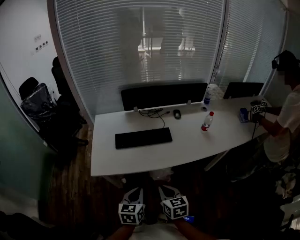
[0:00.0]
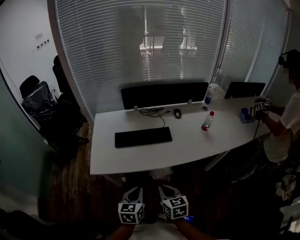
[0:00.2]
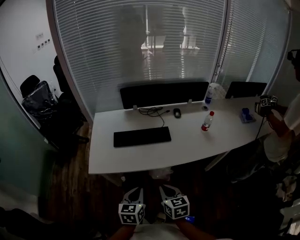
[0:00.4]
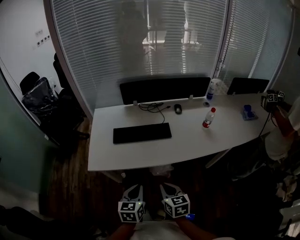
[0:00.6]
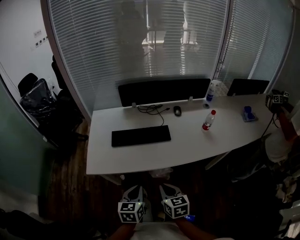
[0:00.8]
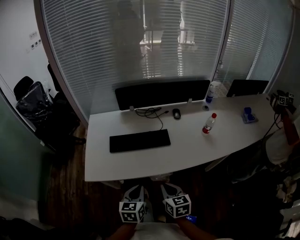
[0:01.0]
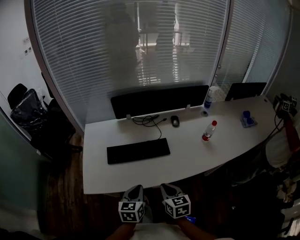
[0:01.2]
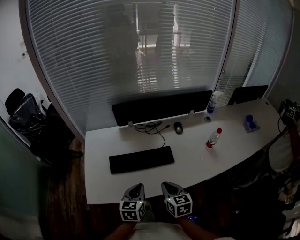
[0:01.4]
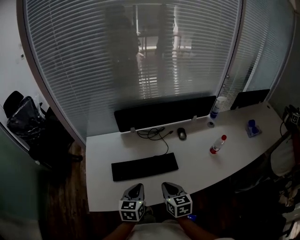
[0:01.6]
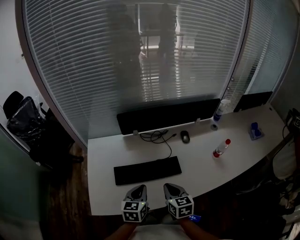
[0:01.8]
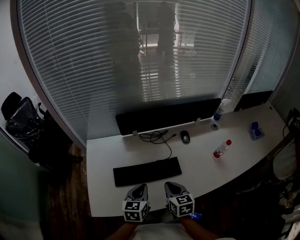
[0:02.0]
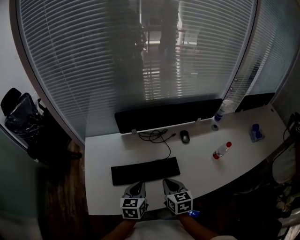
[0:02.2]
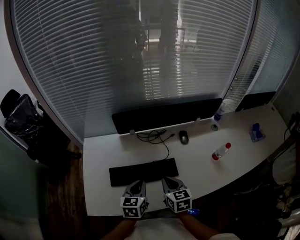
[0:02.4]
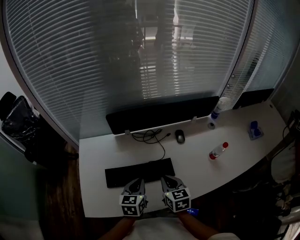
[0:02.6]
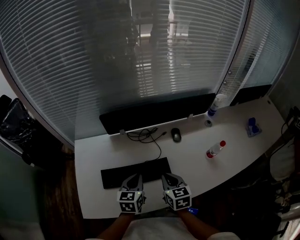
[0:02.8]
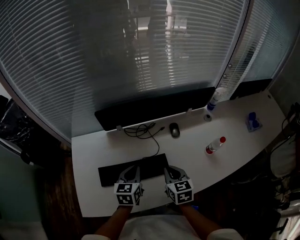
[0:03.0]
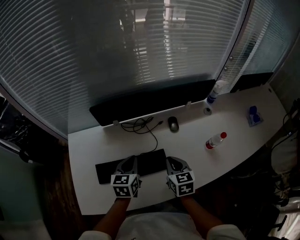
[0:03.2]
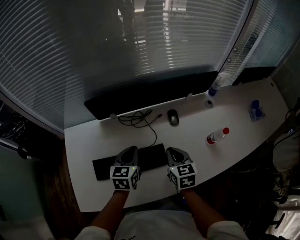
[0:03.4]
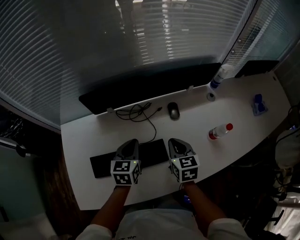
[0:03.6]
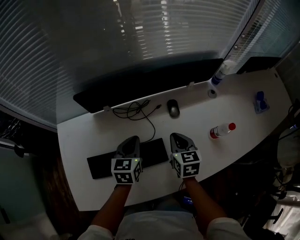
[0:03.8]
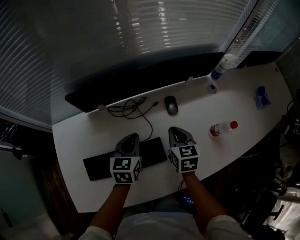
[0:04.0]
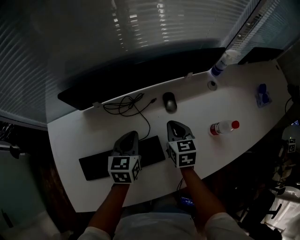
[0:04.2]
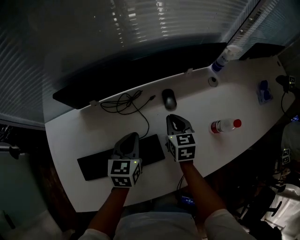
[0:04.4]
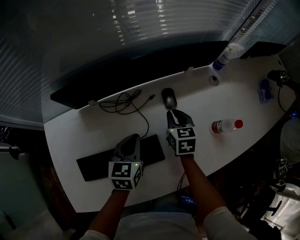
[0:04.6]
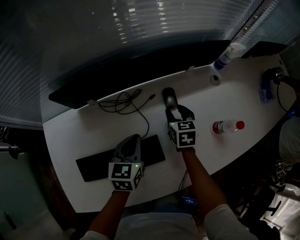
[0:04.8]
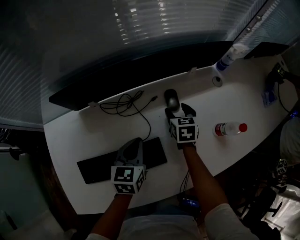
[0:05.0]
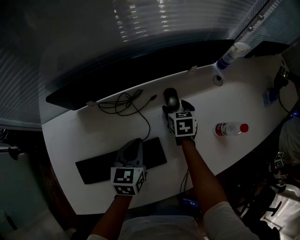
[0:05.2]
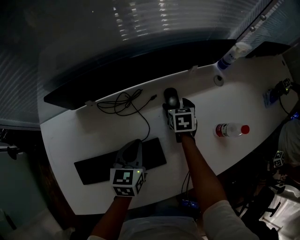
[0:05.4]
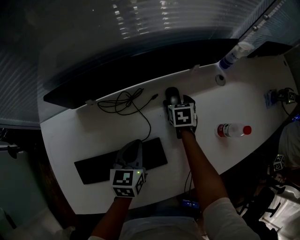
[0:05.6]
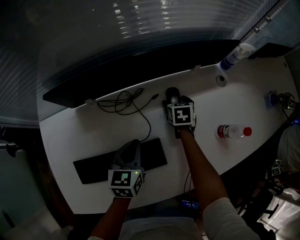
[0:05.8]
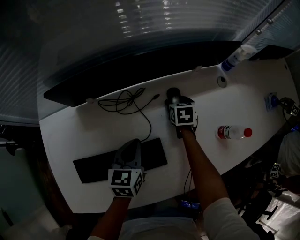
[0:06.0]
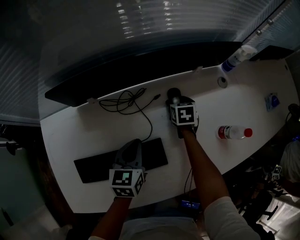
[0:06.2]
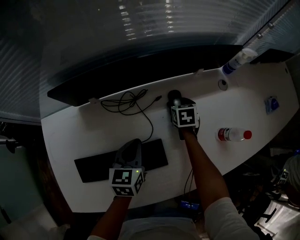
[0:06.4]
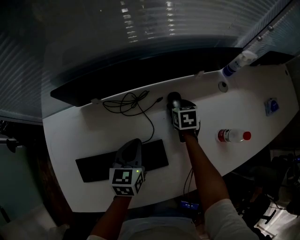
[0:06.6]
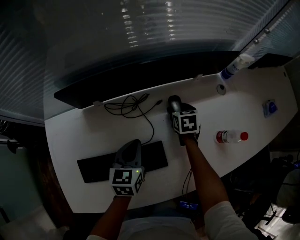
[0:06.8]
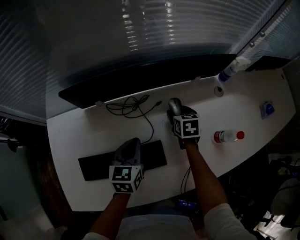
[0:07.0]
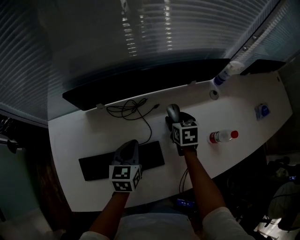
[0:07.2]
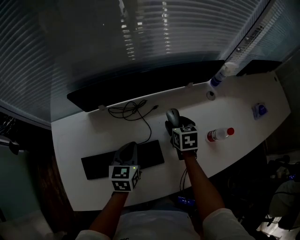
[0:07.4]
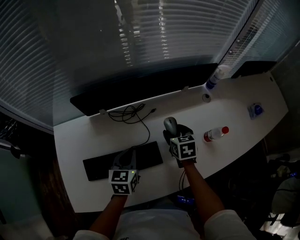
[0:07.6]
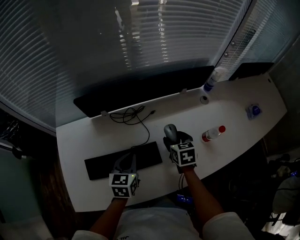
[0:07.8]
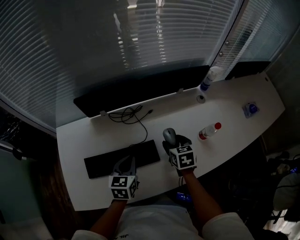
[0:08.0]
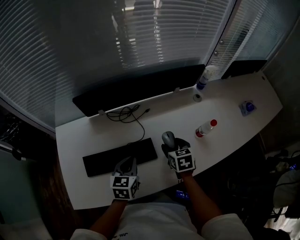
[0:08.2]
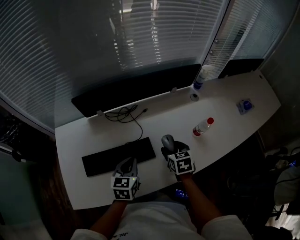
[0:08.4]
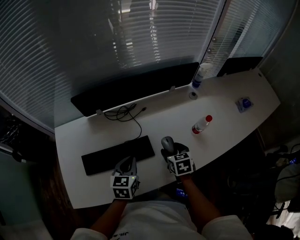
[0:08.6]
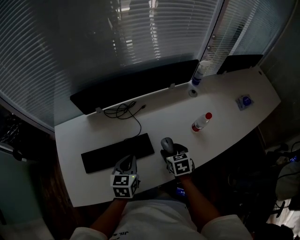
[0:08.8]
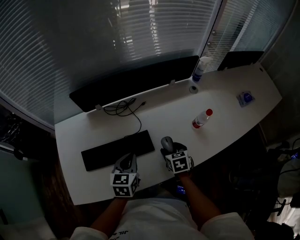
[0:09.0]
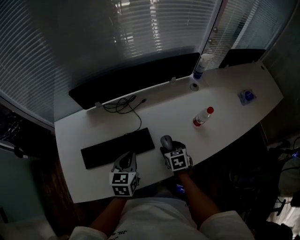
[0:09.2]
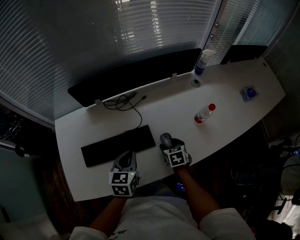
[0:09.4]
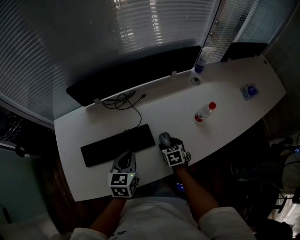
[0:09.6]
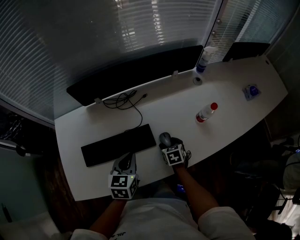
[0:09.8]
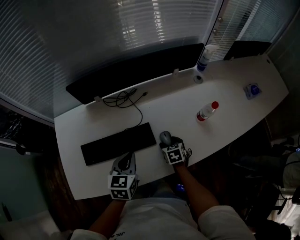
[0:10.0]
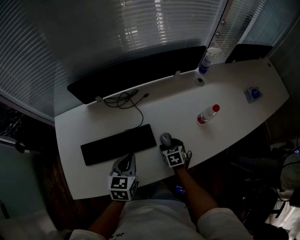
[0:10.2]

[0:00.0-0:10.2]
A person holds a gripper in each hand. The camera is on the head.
0:00.0 to 0:01.4: Both grippers move forward, roughly 20 cm.
0:01.4 to 0:03.0: Both grippers travel together forward, roughly 20 cm.
0:03.0 to 0:04.4: The two grippers go approximately 20 cm forward, downward and to the right.
0:04.4 to 0:05.8: The right gripper shifts some 15 cm downward and forward, and opens its fingers.
0:05.8 to 0:07.2: The right gripper moves upward and backward, approximately 10 cm.
0:07.2 to 0:08.8: The left gripper goes approximately 15 cm backward, while the right gripper shifts roughly 25 cm backward.
0:08.8 to 0:10.2: The right gripper shifts approximately 10 cm downward.

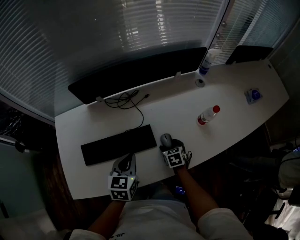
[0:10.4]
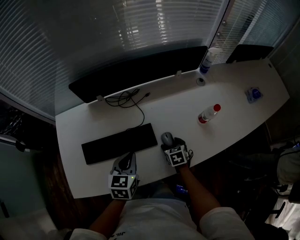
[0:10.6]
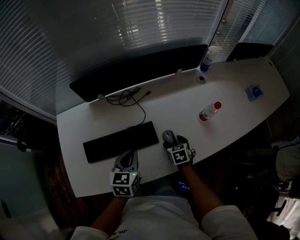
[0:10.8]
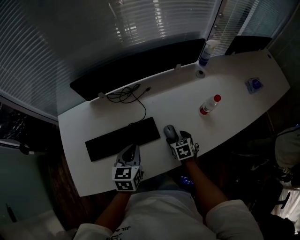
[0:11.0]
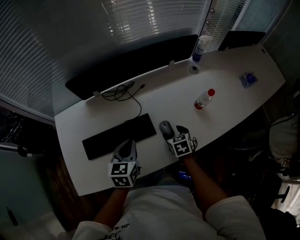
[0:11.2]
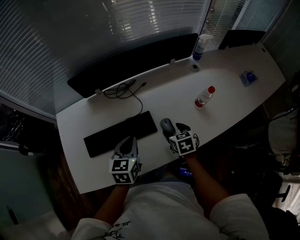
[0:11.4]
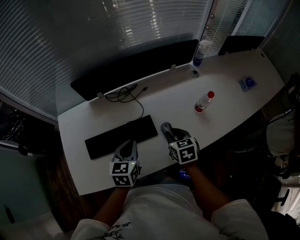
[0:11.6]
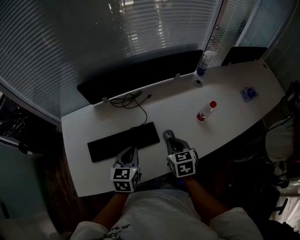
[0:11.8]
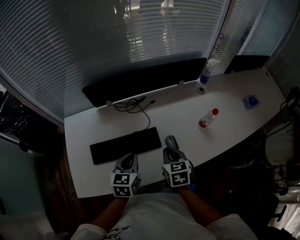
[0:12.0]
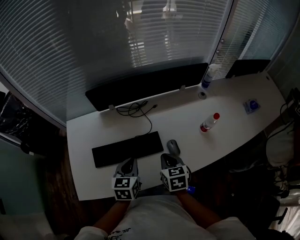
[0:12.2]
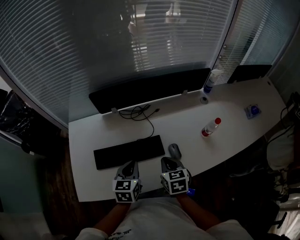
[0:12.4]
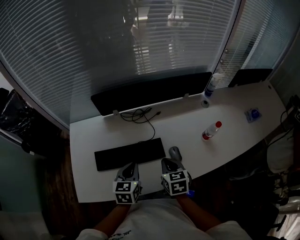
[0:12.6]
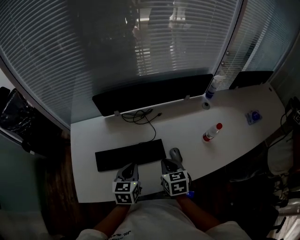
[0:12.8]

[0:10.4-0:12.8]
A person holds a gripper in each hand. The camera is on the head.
0:10.4 to 0:11.6: The right gripper goes about 15 cm upward, and closes up.
0:11.6 to 0:12.8: The right gripper travels to the left by about 10 cm. The left gripper goes some 5 cm to the left.

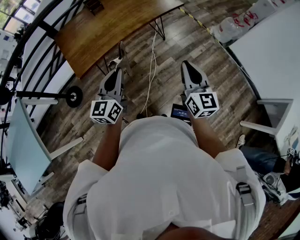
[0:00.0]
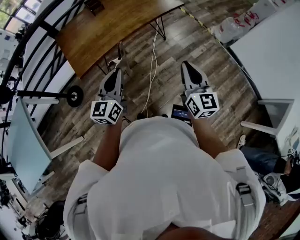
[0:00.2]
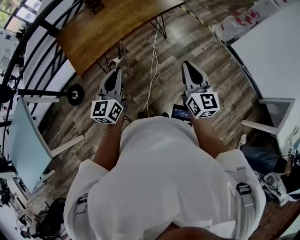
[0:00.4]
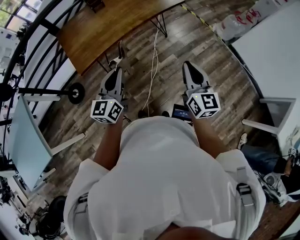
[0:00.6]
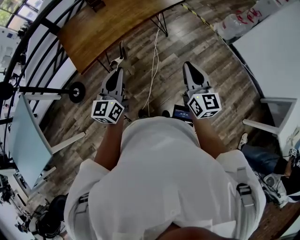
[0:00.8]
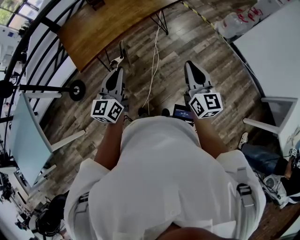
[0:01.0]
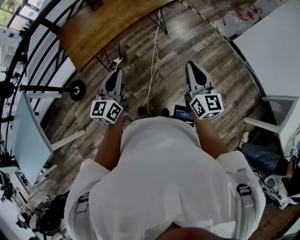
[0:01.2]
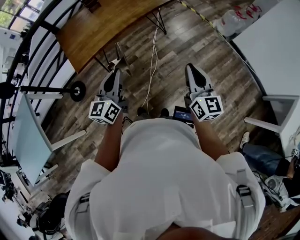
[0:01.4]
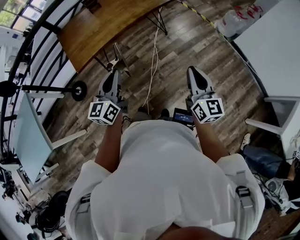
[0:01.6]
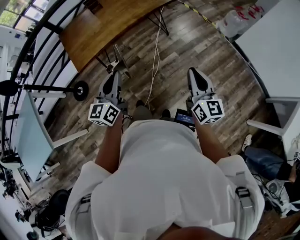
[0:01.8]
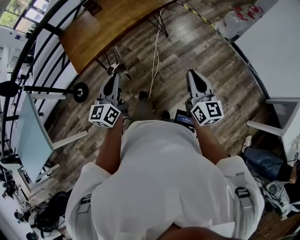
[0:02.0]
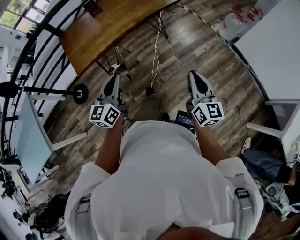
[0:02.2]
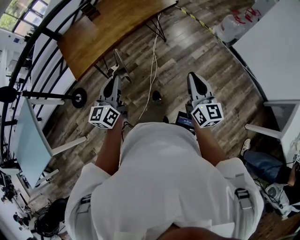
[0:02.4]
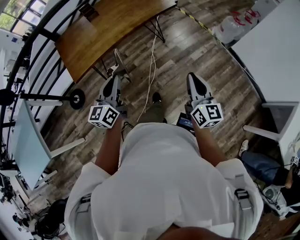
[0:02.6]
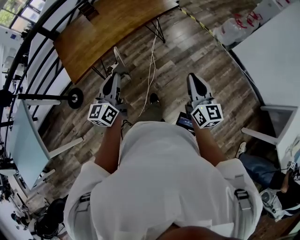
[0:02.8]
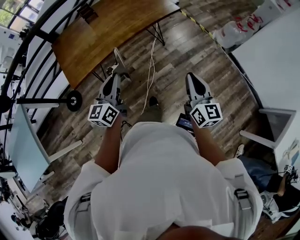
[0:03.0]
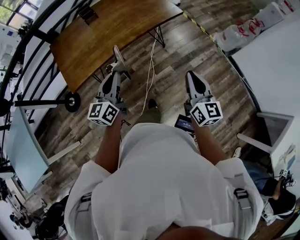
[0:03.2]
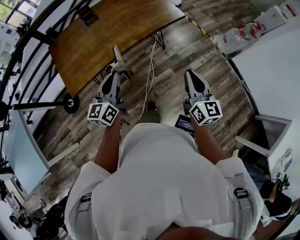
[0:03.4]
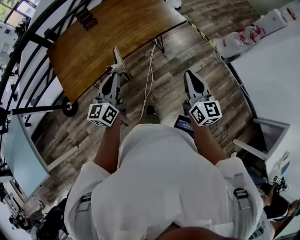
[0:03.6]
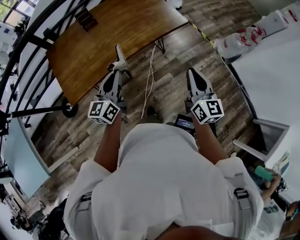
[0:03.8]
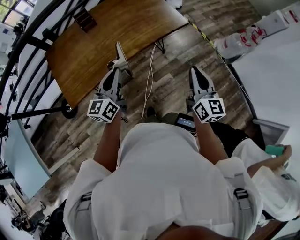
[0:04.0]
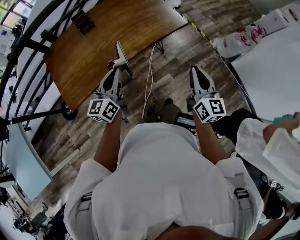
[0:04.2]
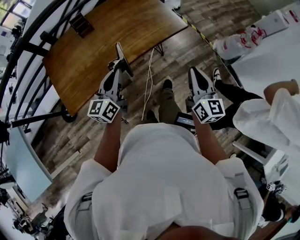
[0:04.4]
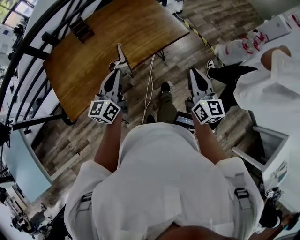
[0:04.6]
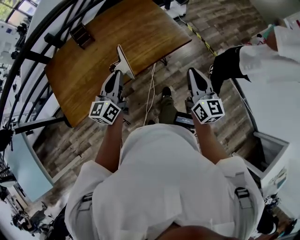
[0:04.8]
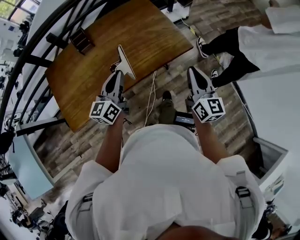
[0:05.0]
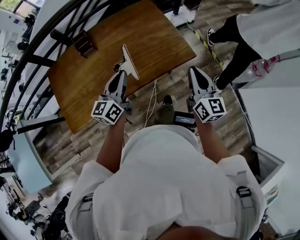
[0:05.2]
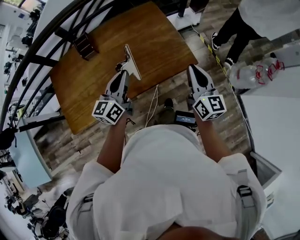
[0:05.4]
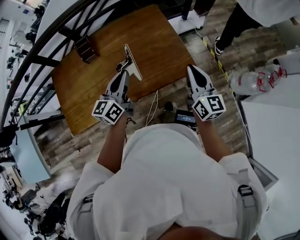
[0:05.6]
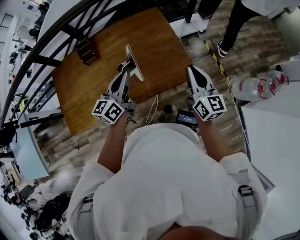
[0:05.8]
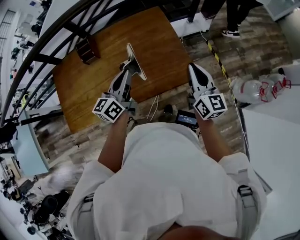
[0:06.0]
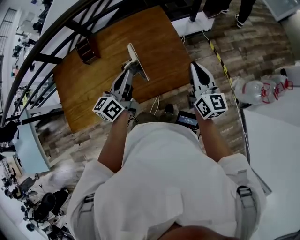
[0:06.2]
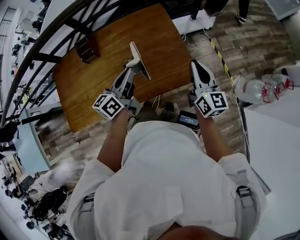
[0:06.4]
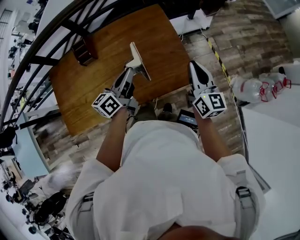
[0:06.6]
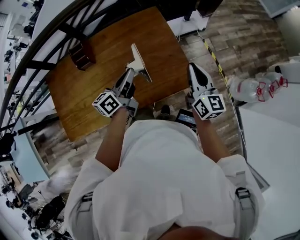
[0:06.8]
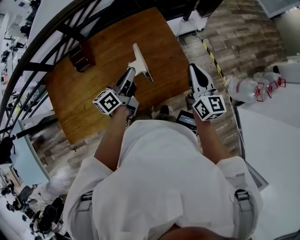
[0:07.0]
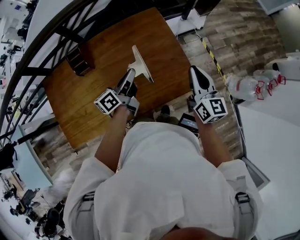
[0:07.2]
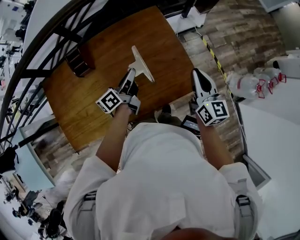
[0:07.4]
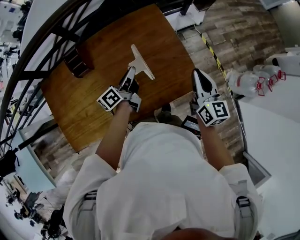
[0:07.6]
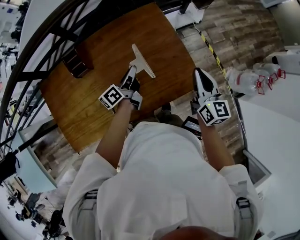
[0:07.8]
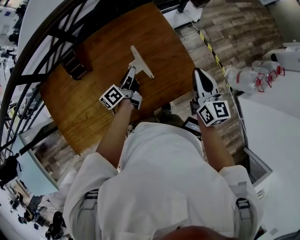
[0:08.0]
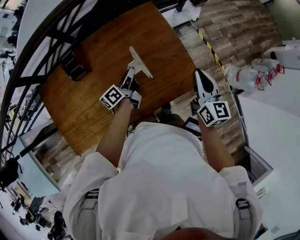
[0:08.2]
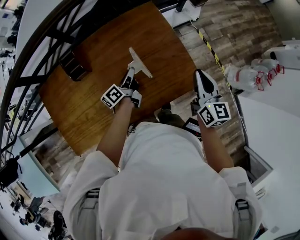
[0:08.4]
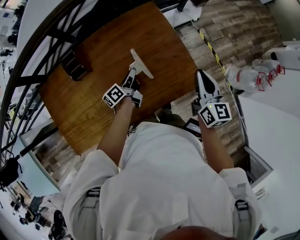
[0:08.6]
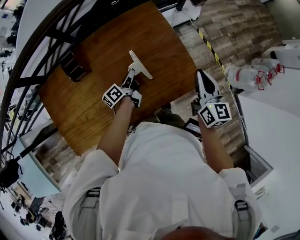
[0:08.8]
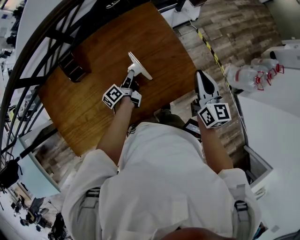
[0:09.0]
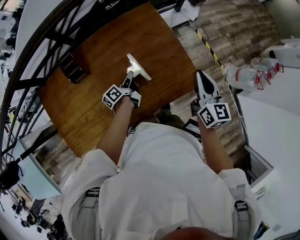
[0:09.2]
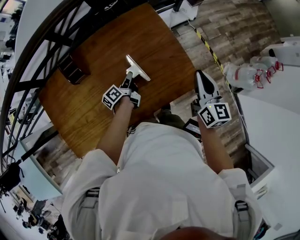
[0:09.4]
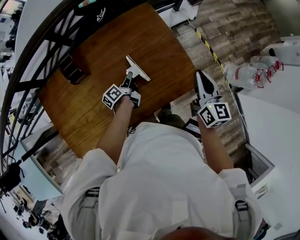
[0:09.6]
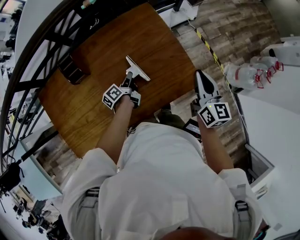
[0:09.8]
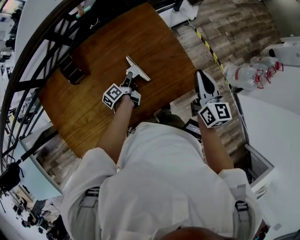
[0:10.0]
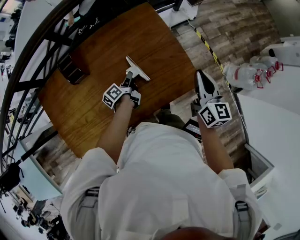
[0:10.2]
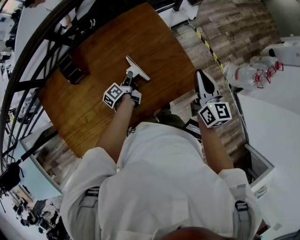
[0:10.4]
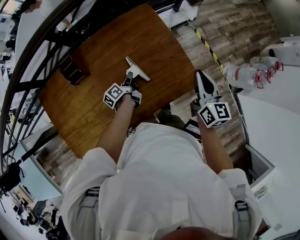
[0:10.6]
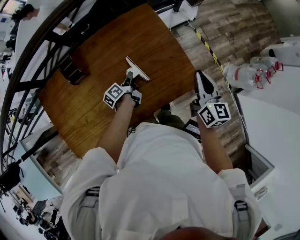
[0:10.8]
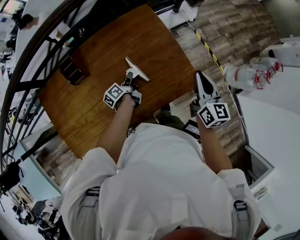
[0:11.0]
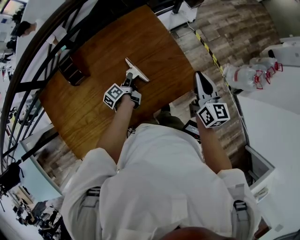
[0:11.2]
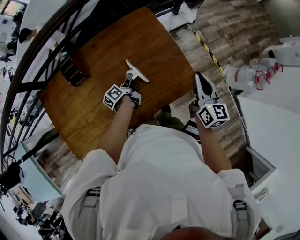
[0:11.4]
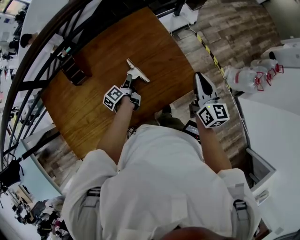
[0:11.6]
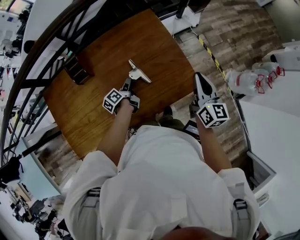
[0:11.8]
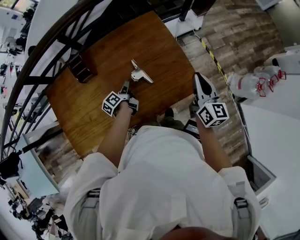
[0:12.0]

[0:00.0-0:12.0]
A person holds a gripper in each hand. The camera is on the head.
0:00.0 to 0:01.6: The two grippers go approximately 10 cm to the right and backward.
0:01.6 to 0:03.0: Both grippers travel together forward, about 10 cm.
0:03.0 to 0:04.4: The grippers both shift forward by some 25 cm.
0:04.4 to 0:06.0: Both grippers move forward, about 35 cm.
0:06.0 to 0:07.6: The left gripper travels forward and downward by approximately 15 cm, and swivels some 30 degrees. The right gripper heads forward, covering about 5 cm.
0:07.6 to 0:09.0: The left gripper goes roughly 15 cm downward.
0:09.0 to 0:10.4: The grippers stay close to where they were, moving slightly.
0:10.4 to 0:12.0: The left gripper changes place by roughly 5 cm.
